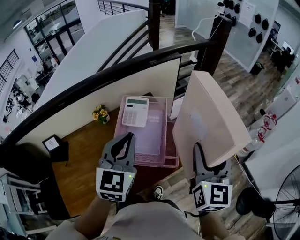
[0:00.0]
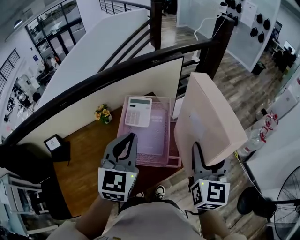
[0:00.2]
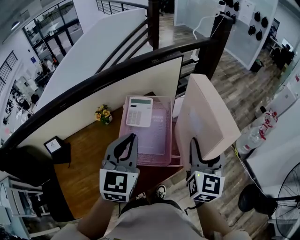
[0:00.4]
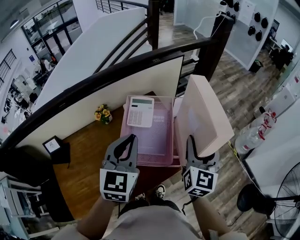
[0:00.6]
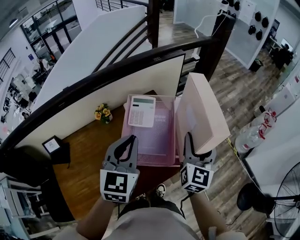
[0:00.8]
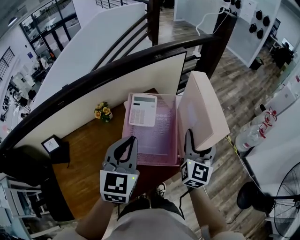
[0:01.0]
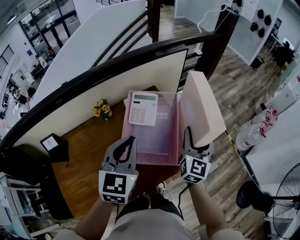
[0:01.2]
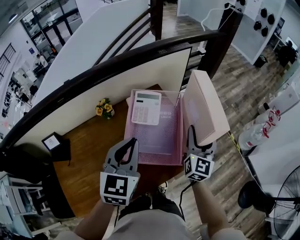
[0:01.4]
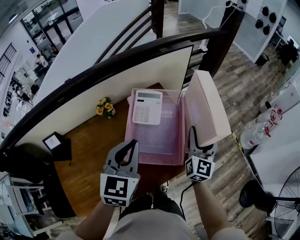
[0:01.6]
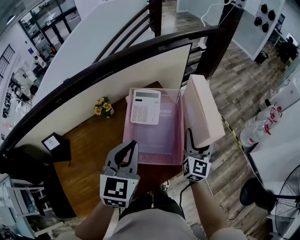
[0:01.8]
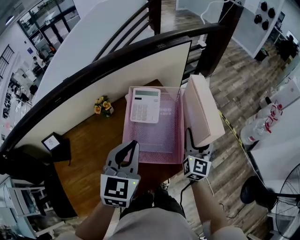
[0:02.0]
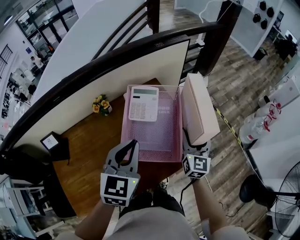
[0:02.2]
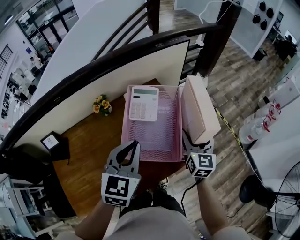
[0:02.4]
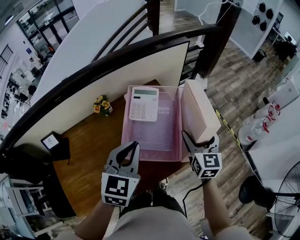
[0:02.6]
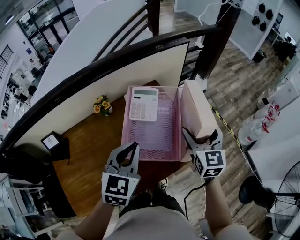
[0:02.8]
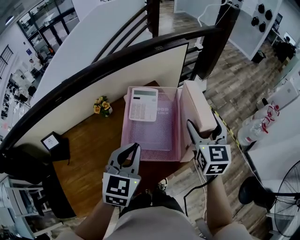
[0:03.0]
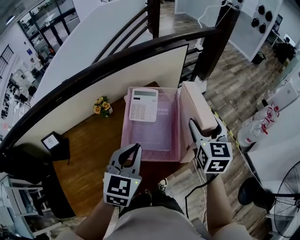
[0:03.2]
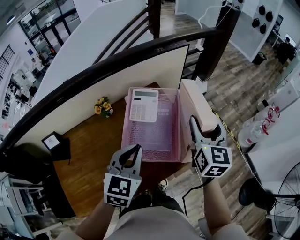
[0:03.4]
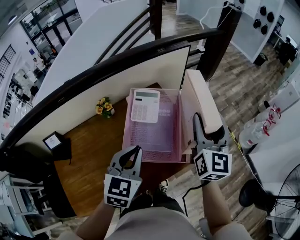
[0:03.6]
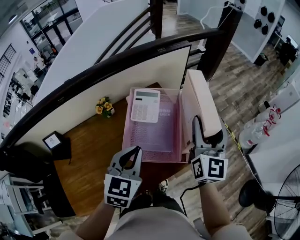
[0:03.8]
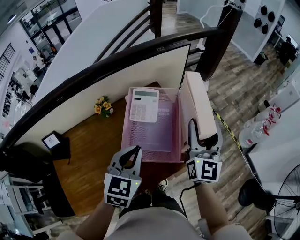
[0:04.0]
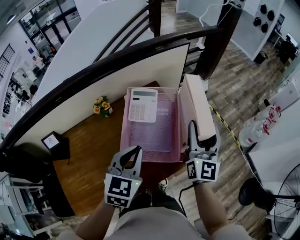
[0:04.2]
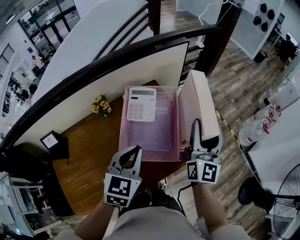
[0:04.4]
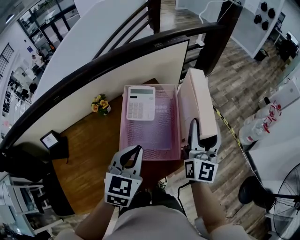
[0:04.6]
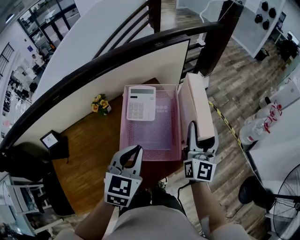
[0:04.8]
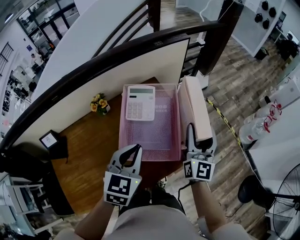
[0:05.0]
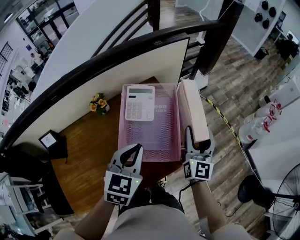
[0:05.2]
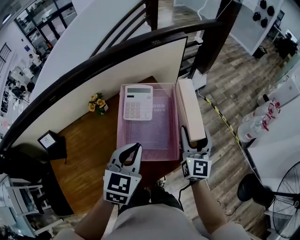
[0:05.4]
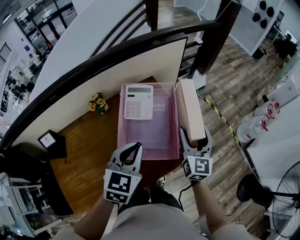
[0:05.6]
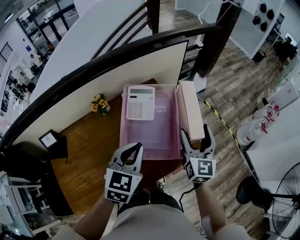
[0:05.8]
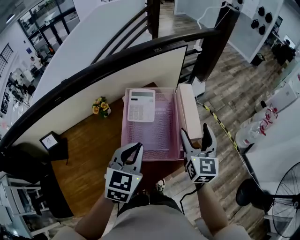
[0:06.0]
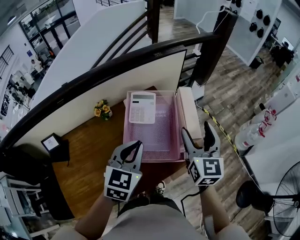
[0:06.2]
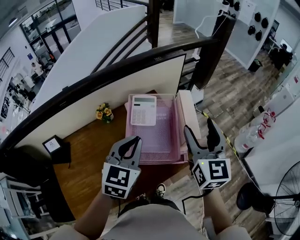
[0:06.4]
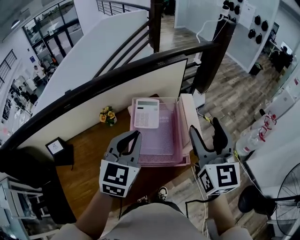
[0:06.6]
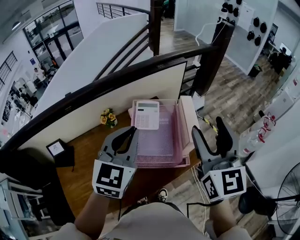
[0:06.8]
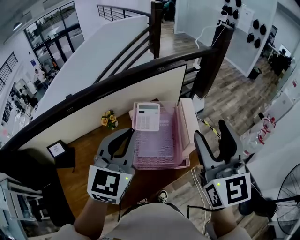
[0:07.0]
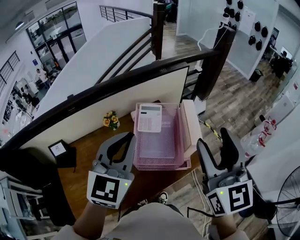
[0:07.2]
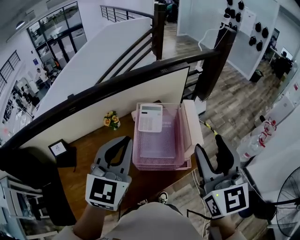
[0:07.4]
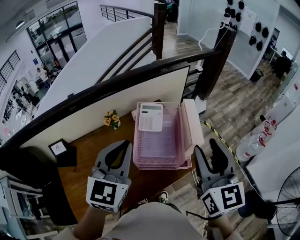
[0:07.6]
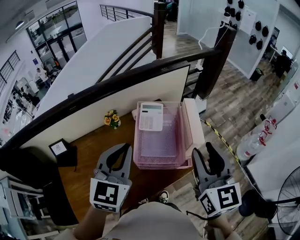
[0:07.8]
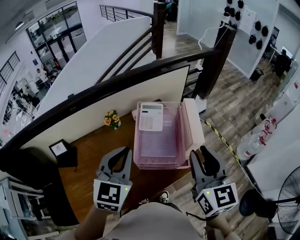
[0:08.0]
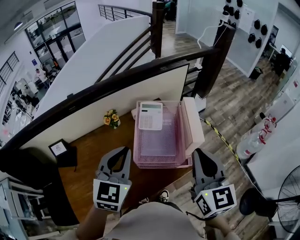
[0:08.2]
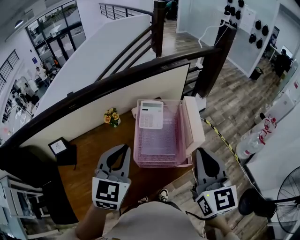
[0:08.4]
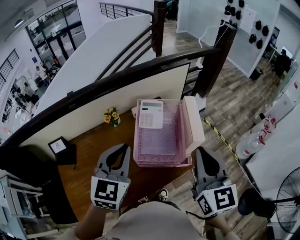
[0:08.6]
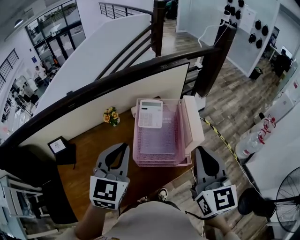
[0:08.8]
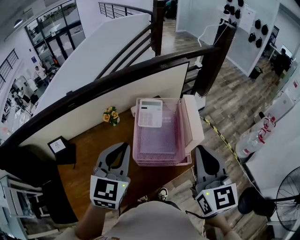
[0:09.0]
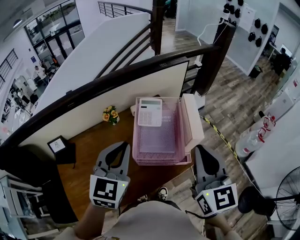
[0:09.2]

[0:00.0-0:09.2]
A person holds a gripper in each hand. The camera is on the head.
0:00.0 to 0:01.6: The left gripper travels downward and to the left by some 10 cm. Meanwhile the right gripper heads downward, forward and to the left, covering approximately 20 cm.
0:01.6 to 0:03.0: The right gripper goes about 5 cm upward, and changes its angle by about 20 degrees.
0:03.0 to 0:04.6: The right gripper tips its fingers upward by roughly 30 degrees.
0:04.6 to 0:06.2: The right gripper travels downward and back again, roughly 10 cm each way, and swivels some 30 degrees.
0:06.2 to 0:07.6: The left gripper heads upward and to the left, covering approximately 15 cm, while the right gripper moves upward and backward, roughly 15 cm, and closes its fingers.
0:07.6 to 0:09.2: The right gripper closes its fingers.

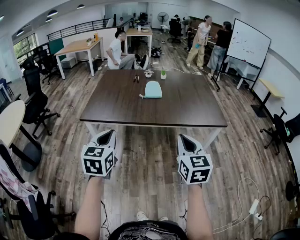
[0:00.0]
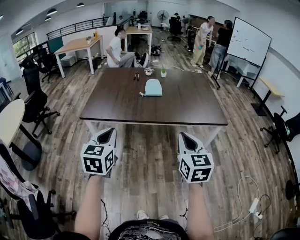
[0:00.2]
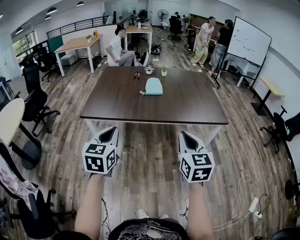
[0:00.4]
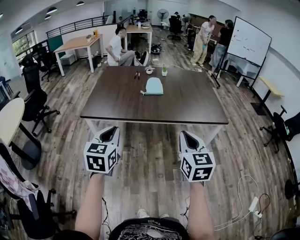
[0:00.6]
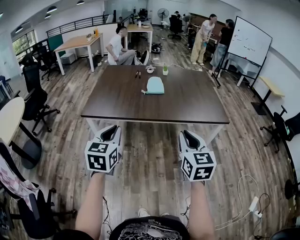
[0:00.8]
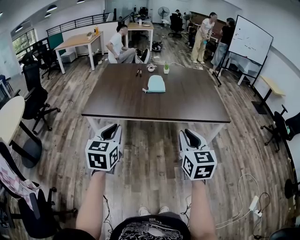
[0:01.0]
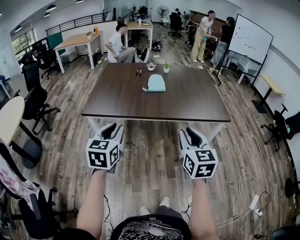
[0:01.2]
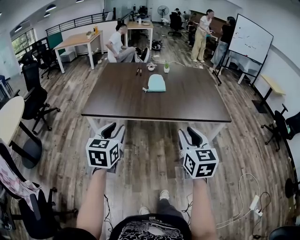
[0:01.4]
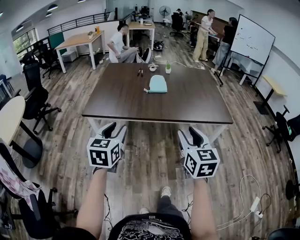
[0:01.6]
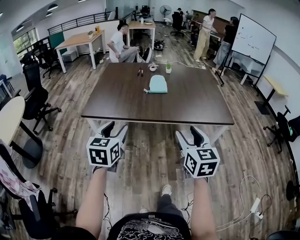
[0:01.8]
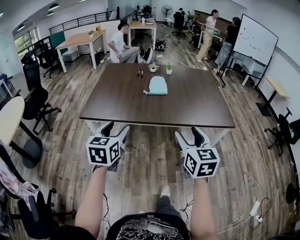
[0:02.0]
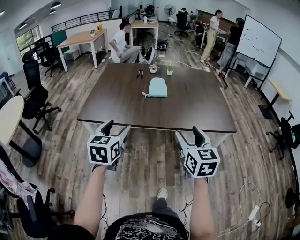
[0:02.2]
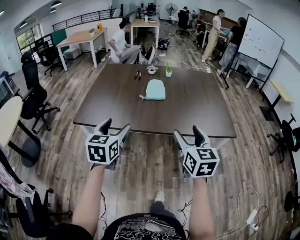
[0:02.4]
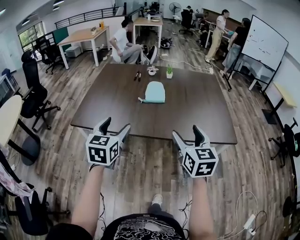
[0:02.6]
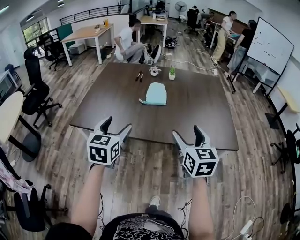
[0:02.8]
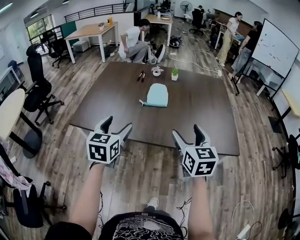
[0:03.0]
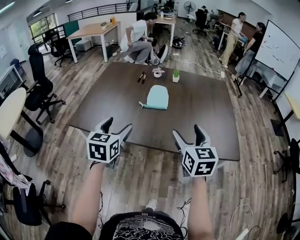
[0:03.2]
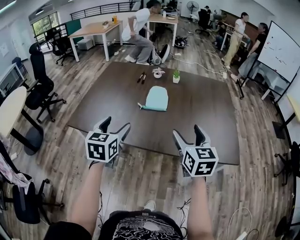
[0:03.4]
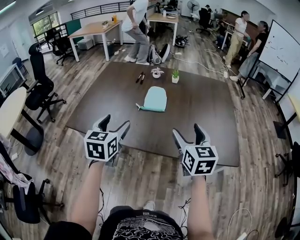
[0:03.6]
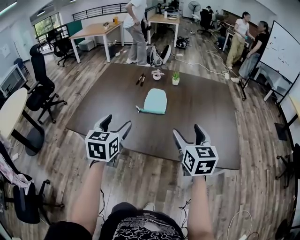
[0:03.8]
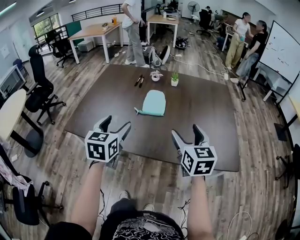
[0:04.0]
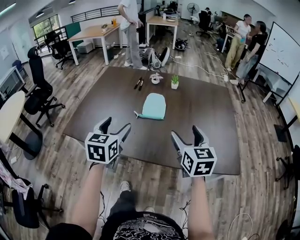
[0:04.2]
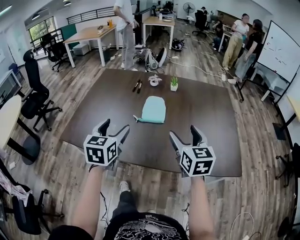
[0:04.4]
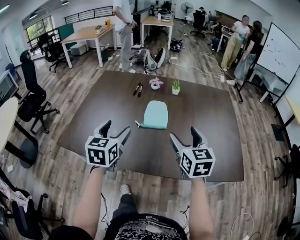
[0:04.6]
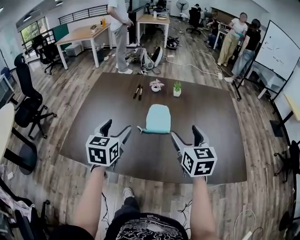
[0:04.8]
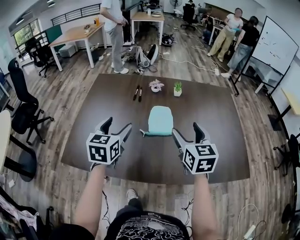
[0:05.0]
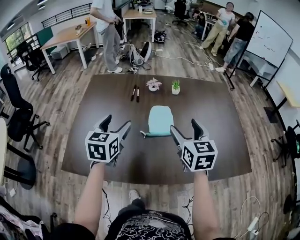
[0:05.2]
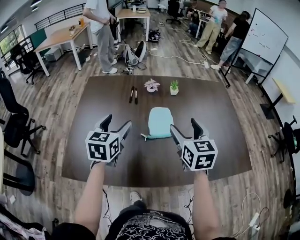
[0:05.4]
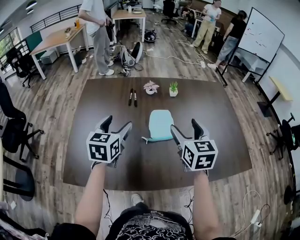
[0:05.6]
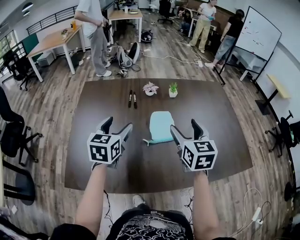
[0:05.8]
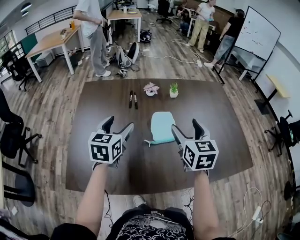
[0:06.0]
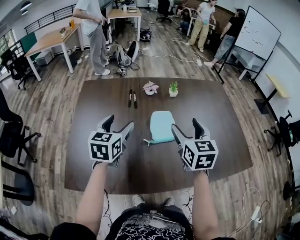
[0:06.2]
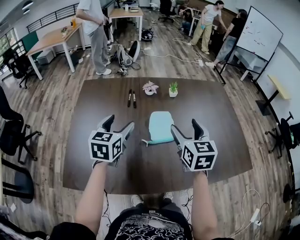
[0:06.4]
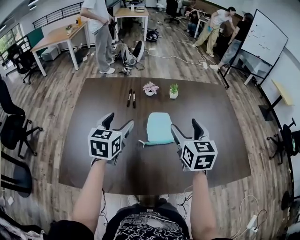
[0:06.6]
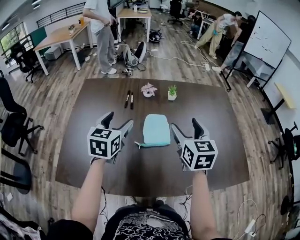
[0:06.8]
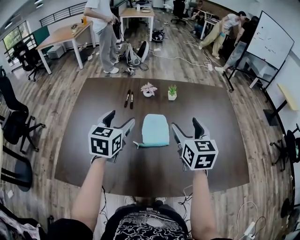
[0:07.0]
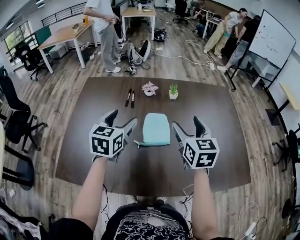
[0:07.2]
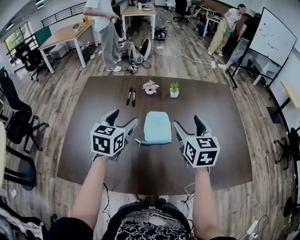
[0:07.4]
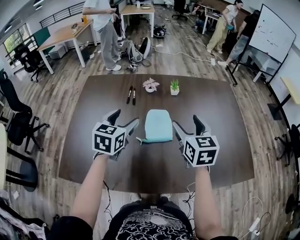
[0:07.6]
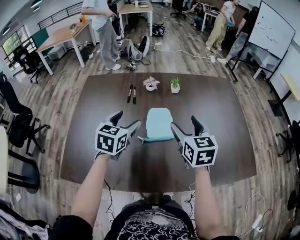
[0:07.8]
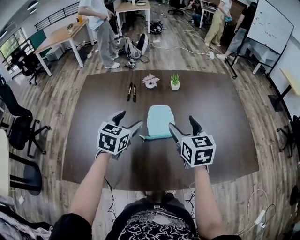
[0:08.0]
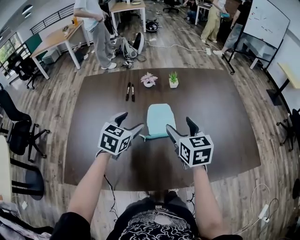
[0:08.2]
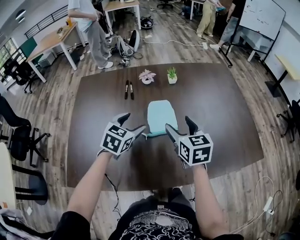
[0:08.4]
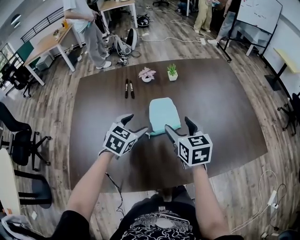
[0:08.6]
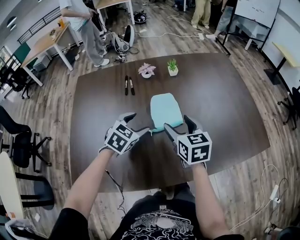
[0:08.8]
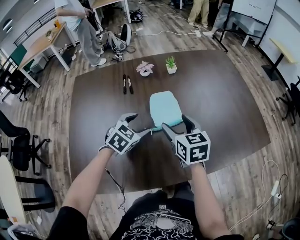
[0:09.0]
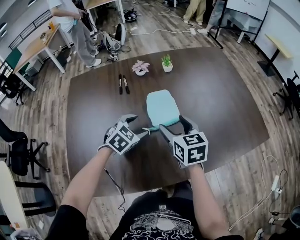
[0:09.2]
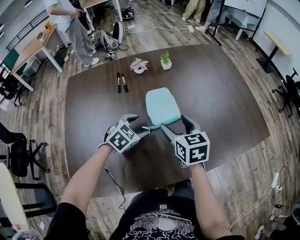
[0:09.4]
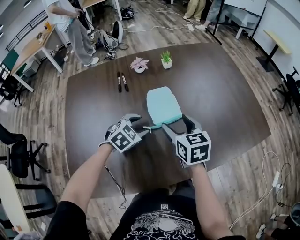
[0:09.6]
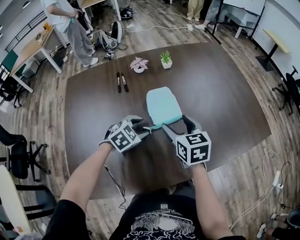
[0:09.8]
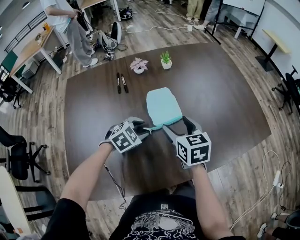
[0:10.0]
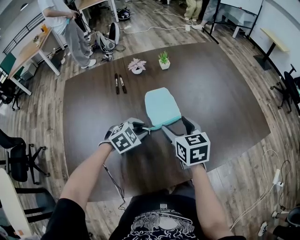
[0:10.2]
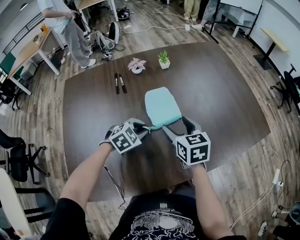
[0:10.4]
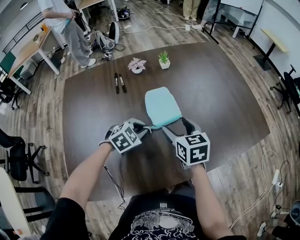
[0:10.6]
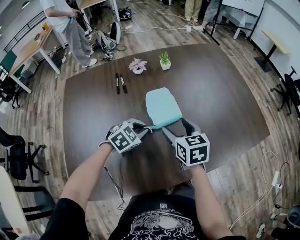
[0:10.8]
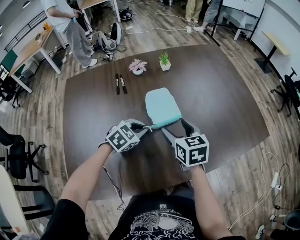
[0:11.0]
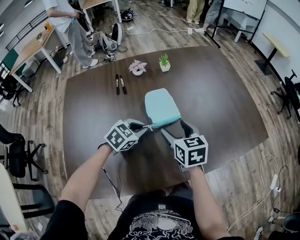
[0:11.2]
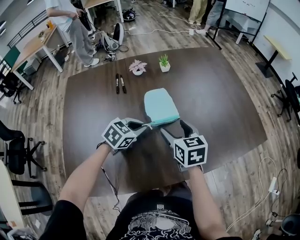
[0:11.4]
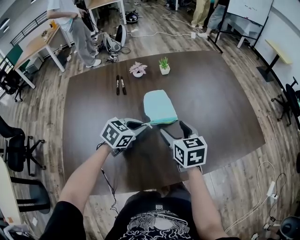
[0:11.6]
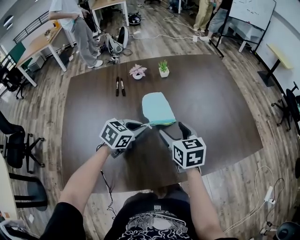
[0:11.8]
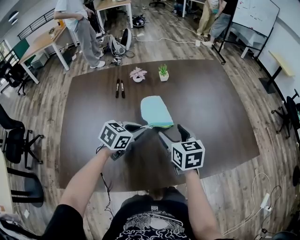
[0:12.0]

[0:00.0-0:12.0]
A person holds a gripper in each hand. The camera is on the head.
0:00.0 to 0:01.6: The right gripper opens, while the left gripper opens.
0:01.6 to 0:03.0: The right gripper shifts approximately 25 cm forward, and opens. The left gripper shifts some 25 cm forward and to the right, and opens up.
0:03.0 to 0:04.4: Both grippers move forward, roughly 15 cm.
0:04.4 to 0:06.0: Both grippers move forward and to the left, approximately 20 cm.
0:06.0 to 0:07.6: Both grippers move to the right, roughly 5 cm.
0:07.6 to 0:09.0: The right gripper goes roughly 15 cm downward and to the left. The left gripper travels downward by roughly 15 cm, and turns by about 40 degrees.
0:09.0 to 0:10.4: The left gripper travels downward by about 5 cm, changes its angle by some 20 degrees, and closes up.
0:10.4 to 0:12.0: The left gripper goes roughly 10 cm upward, and turns by about 40 degrees.

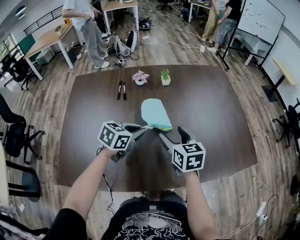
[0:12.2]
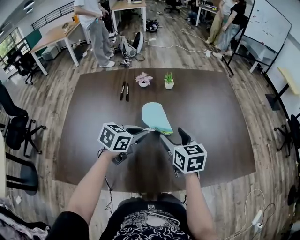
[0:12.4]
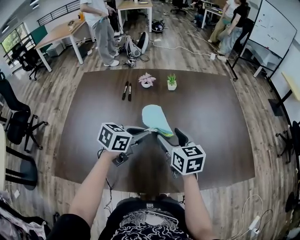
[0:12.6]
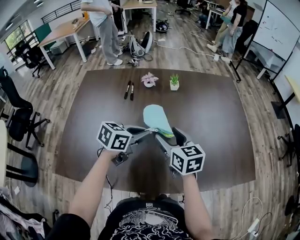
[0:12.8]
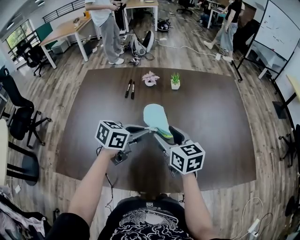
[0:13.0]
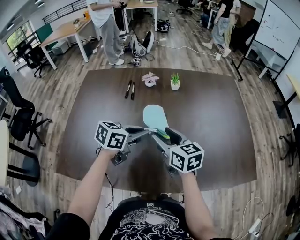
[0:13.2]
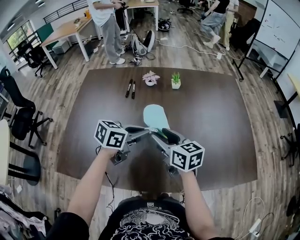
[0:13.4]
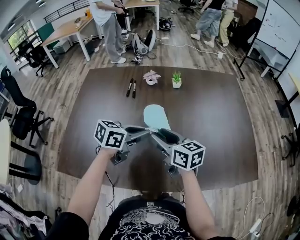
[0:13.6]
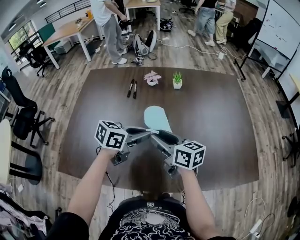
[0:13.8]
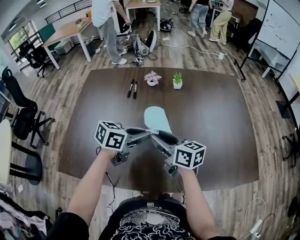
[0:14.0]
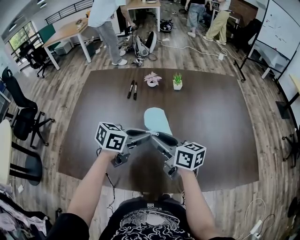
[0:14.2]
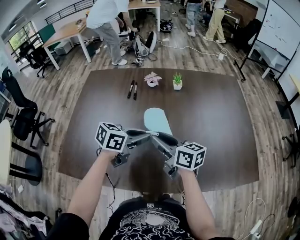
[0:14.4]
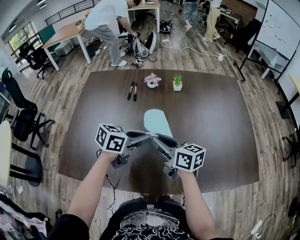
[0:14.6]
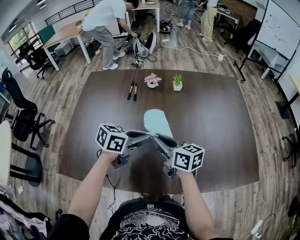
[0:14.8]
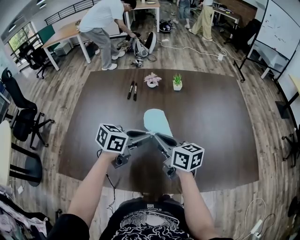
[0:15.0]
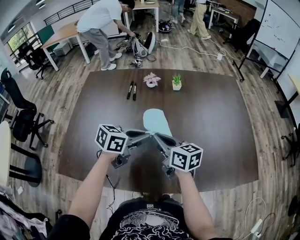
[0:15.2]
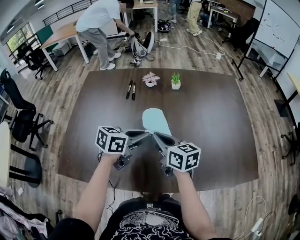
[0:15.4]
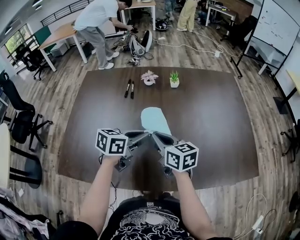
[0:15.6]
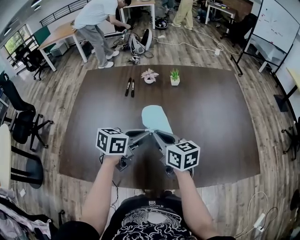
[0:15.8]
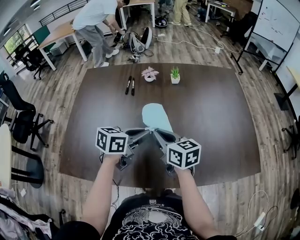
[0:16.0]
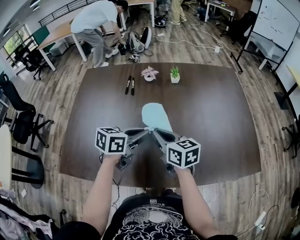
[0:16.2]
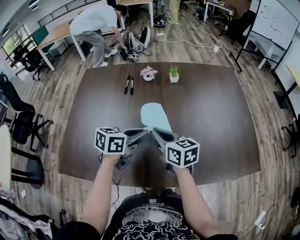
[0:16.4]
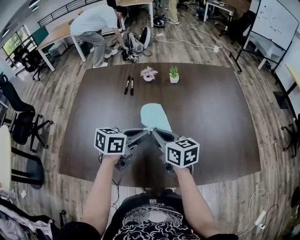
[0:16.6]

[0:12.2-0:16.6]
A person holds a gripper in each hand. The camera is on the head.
0:12.2 to 0:13.6: The right gripper is displaced to the left by roughly 5 cm, turns by about 30 degrees, and closes.
0:13.6 to 0:15.2: The right gripper closes its fingers.
0:15.2 to 0:16.6: The grippers stay close to where they were, moving slightly.
